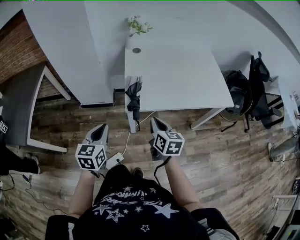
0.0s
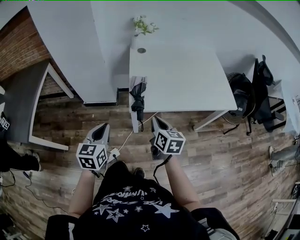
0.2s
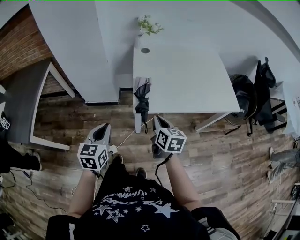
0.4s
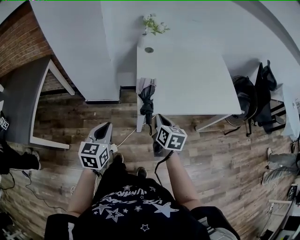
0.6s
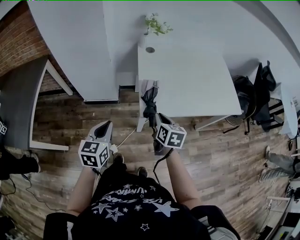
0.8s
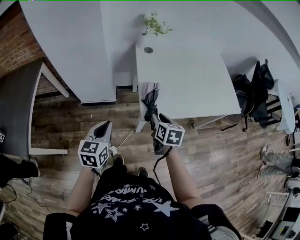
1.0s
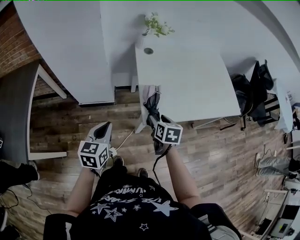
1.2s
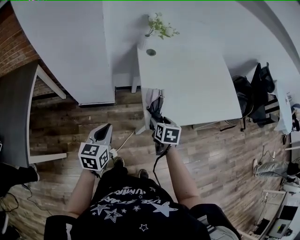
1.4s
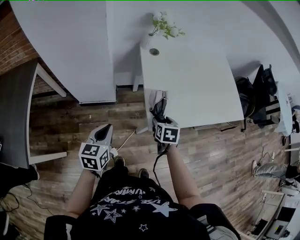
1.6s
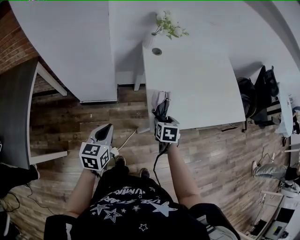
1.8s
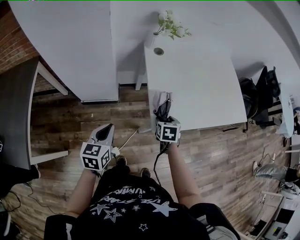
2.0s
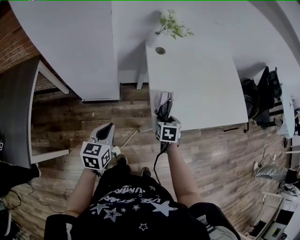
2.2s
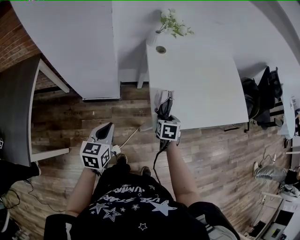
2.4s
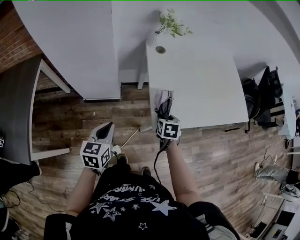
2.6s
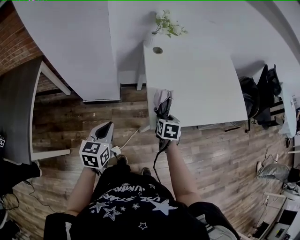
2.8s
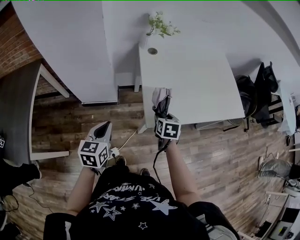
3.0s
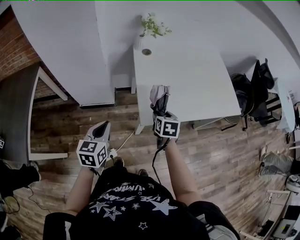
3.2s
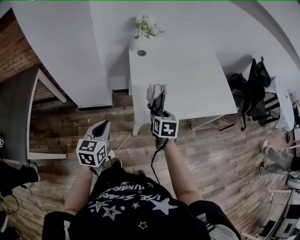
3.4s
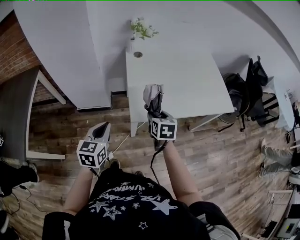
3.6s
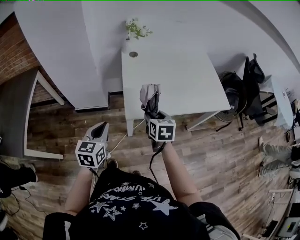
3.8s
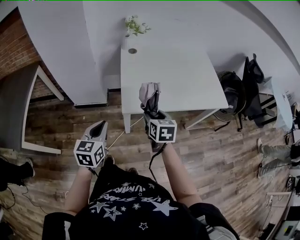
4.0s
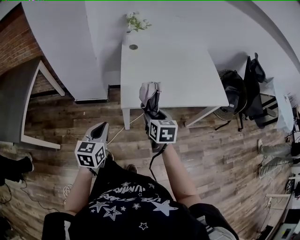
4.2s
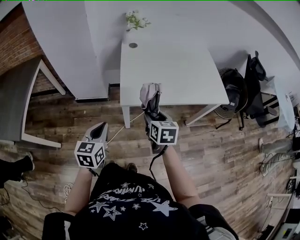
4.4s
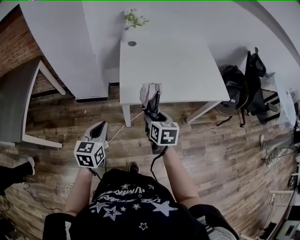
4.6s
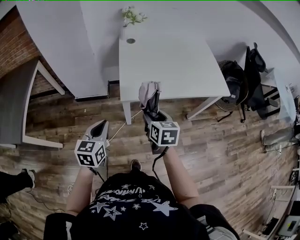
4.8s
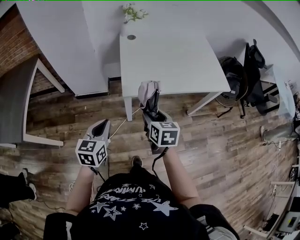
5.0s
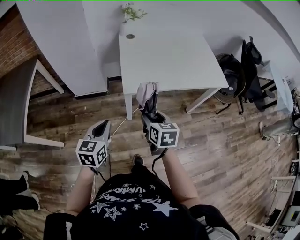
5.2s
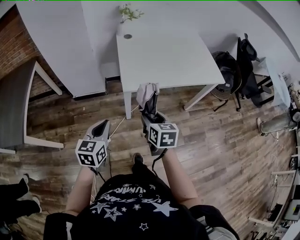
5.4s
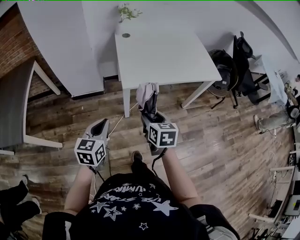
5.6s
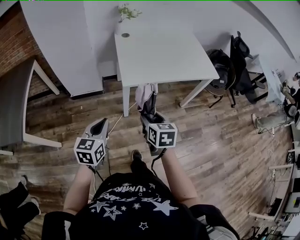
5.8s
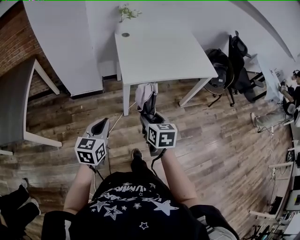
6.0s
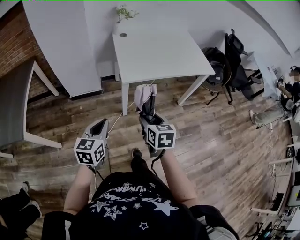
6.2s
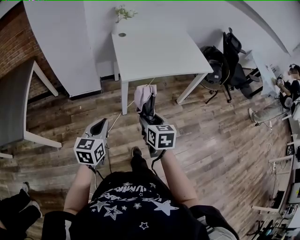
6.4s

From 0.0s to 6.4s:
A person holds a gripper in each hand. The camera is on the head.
From 0.0s to 1.6s: The left gripper travels forward and to the left by approximately 20 cm; the right gripper heads forward, downward and to the left, covering approximately 20 cm, changes its angle by some 30 degrees, and opens up.
From 1.6s to 3.2s: The right gripper ends up about 5 cm from where it was.
From 3.2s to 4.8s: The left gripper shifts roughly 15 cm backward and to the right, while the right gripper moves backward, roughly 15 cm.
From 4.8s to 6.4s: The grippers both shift backward by some 15 cm.

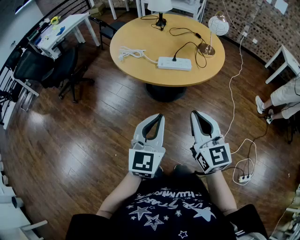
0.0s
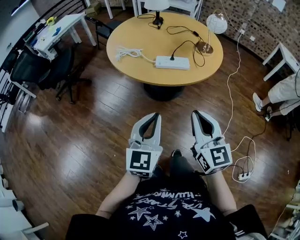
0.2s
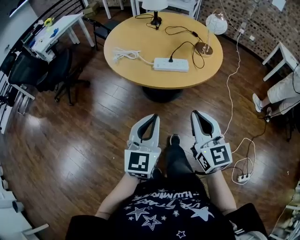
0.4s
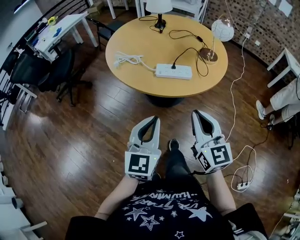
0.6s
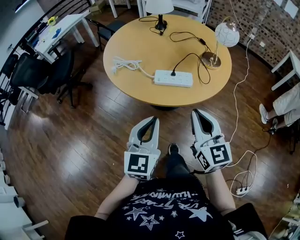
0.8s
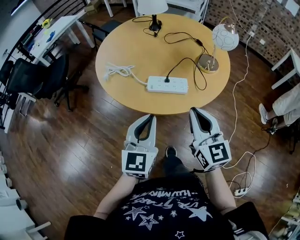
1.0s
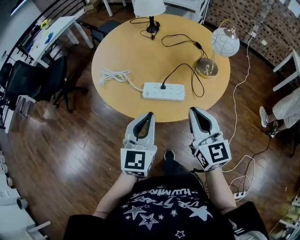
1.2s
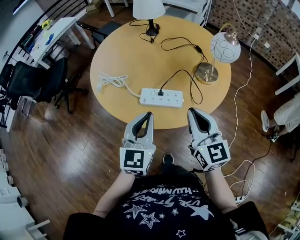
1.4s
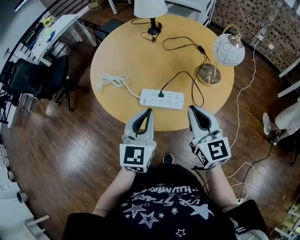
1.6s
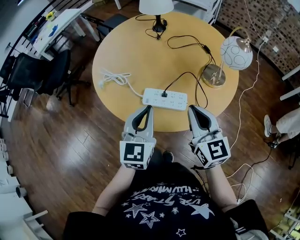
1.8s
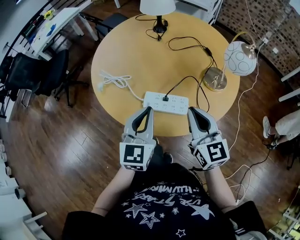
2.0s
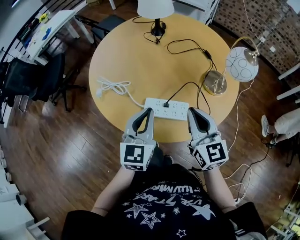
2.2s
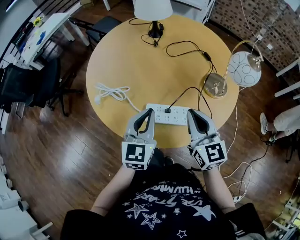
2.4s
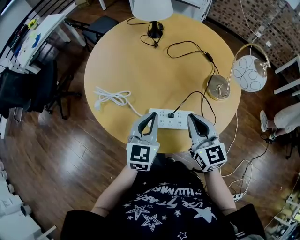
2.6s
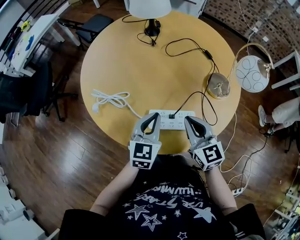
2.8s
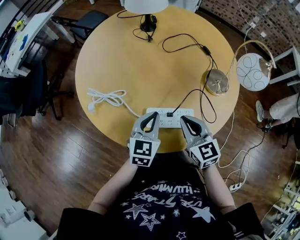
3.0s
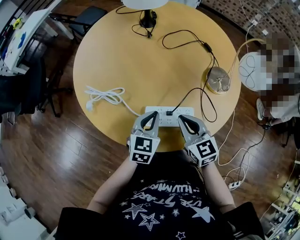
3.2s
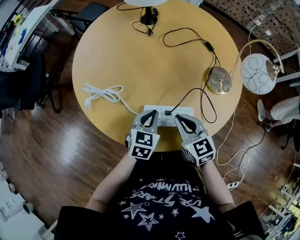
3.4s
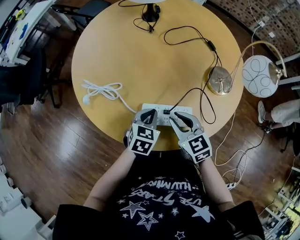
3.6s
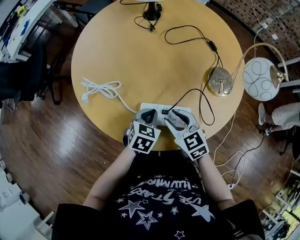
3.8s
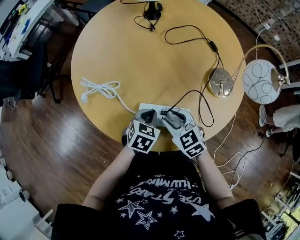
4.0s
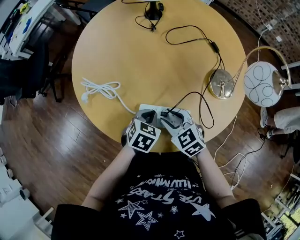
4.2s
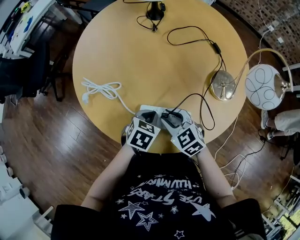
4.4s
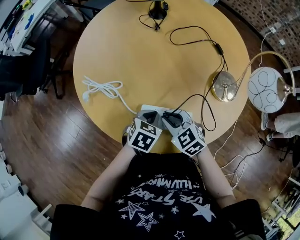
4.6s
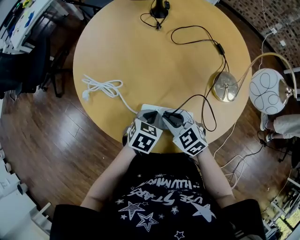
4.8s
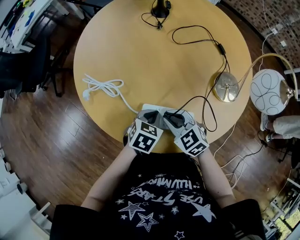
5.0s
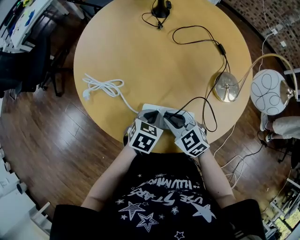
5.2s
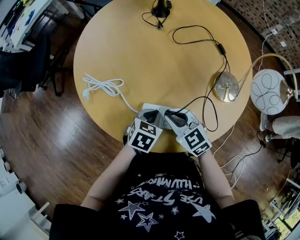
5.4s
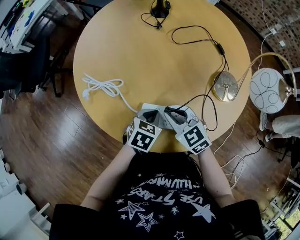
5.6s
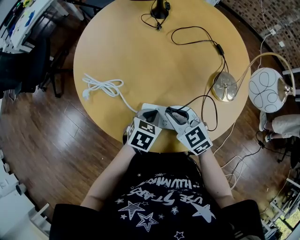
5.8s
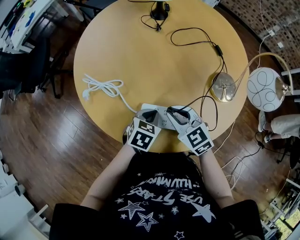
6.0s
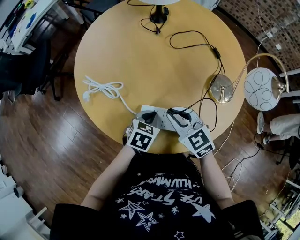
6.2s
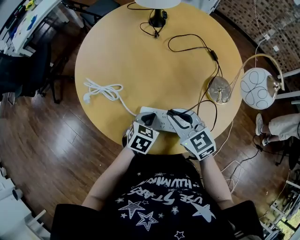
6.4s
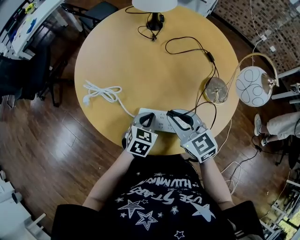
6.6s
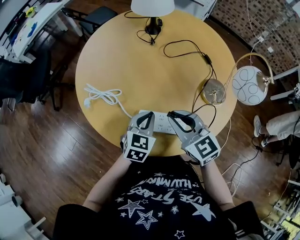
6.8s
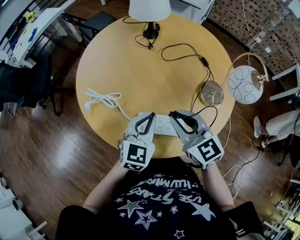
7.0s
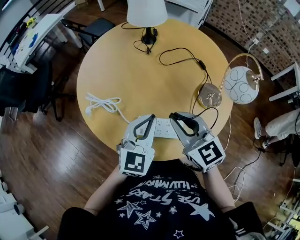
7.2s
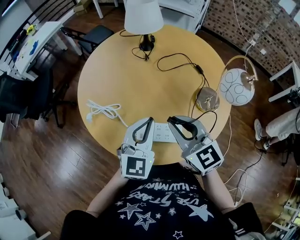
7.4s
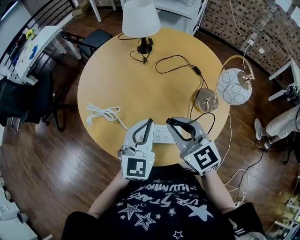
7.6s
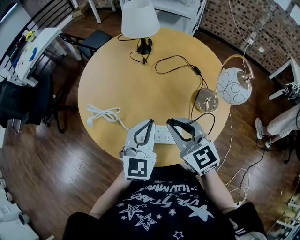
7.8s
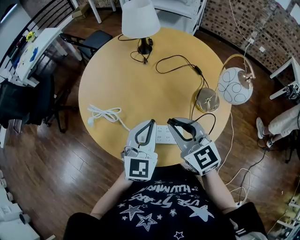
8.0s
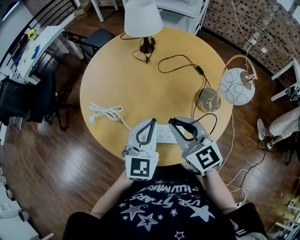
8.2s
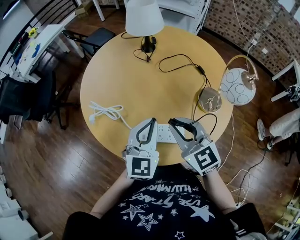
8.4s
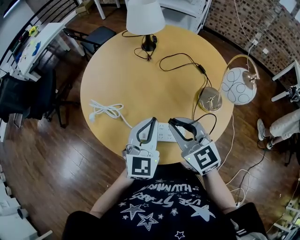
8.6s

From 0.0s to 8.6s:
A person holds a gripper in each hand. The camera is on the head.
From 0.0s to 1.4s: Both grippers travel together forward, roughly 25 cm.
From 1.4s to 2.8s: The right gripper heads forward, downward and to the left, covering approximately 15 cm. Meanwhile the left gripper shifts some 15 cm forward and downward.
From 2.8s to 4.4s: The left gripper travels downward by roughly 10 cm, and angles its fingers downward, by some 40 degrees; the right gripper moves downward and to the left, approximately 10 cm, changes its angle by roughly 40 degrees, and opens its fingers.
From 4.4s to 5.8s: The grippers move only a little.
From 5.8s to 7.2s: Both grippers travel together upward, approximately 15 cm. The right gripper changes its angle by approximately 20 degrees, while the left gripper tips its fingers upward by about 40 degrees.
From 7.2s to 8.6s: The grippers stay close to where they were, moving slightly.

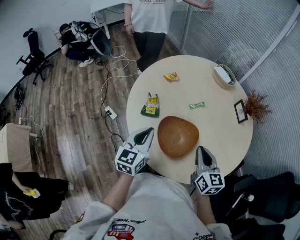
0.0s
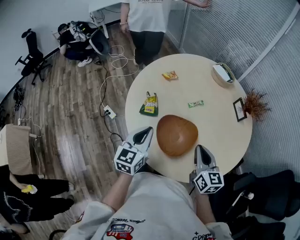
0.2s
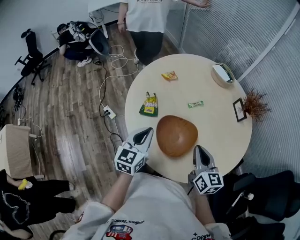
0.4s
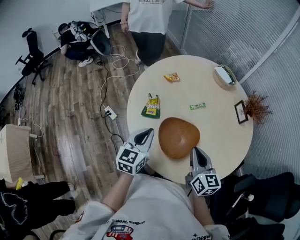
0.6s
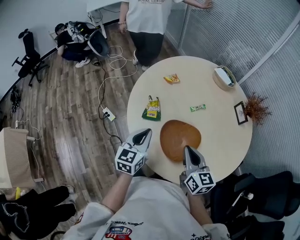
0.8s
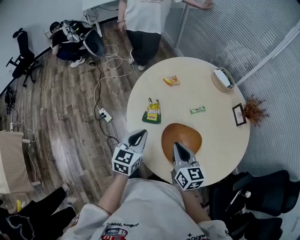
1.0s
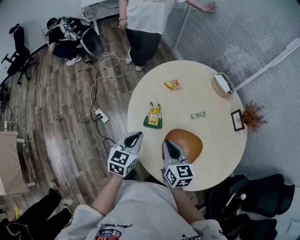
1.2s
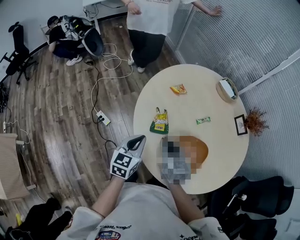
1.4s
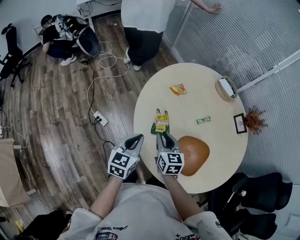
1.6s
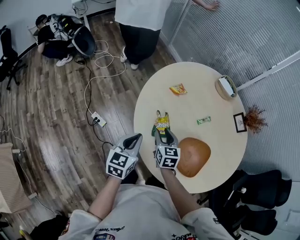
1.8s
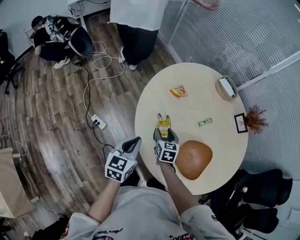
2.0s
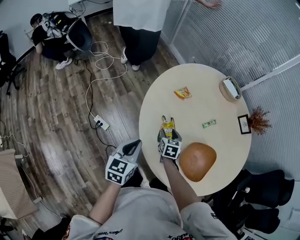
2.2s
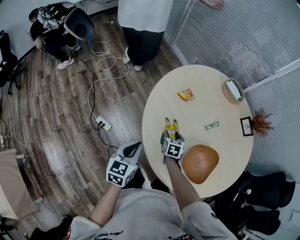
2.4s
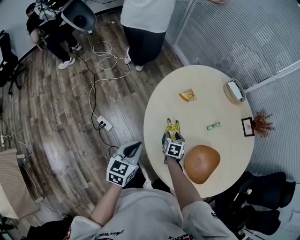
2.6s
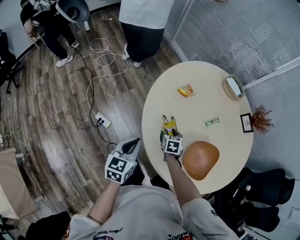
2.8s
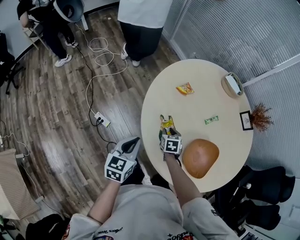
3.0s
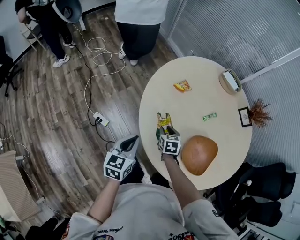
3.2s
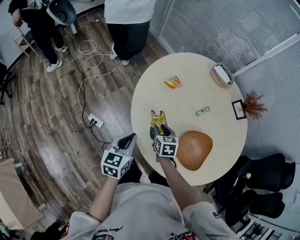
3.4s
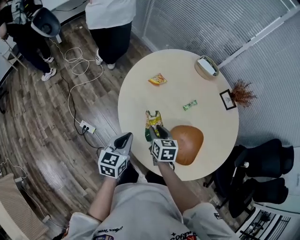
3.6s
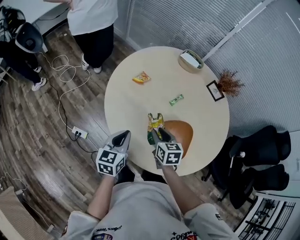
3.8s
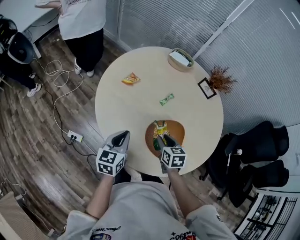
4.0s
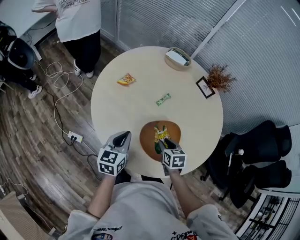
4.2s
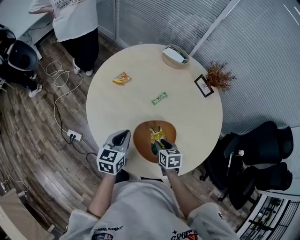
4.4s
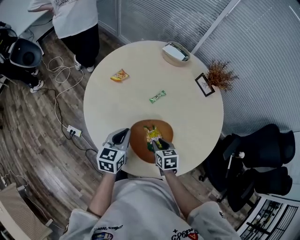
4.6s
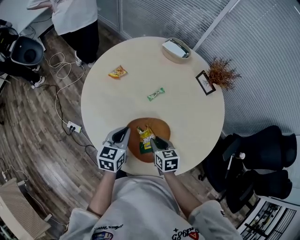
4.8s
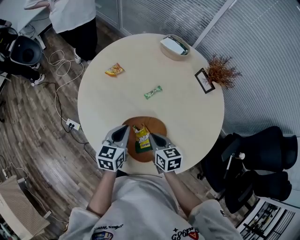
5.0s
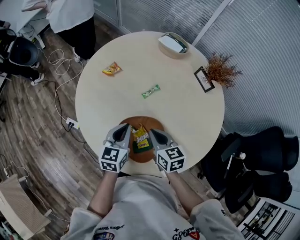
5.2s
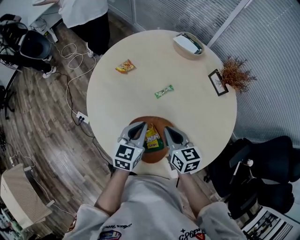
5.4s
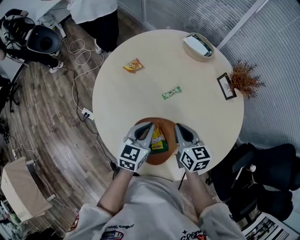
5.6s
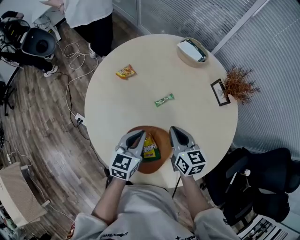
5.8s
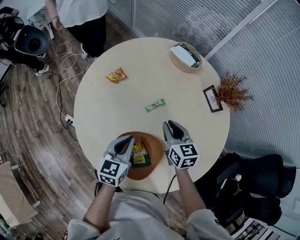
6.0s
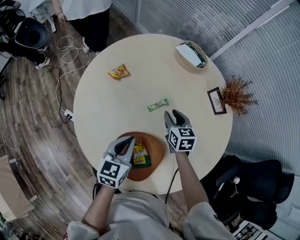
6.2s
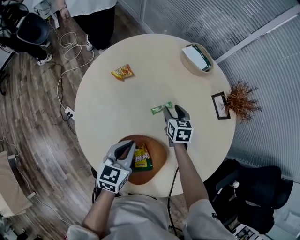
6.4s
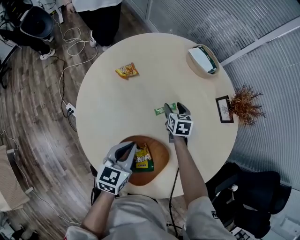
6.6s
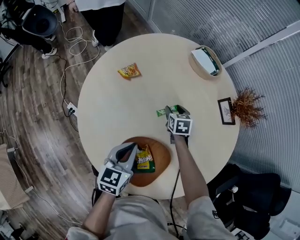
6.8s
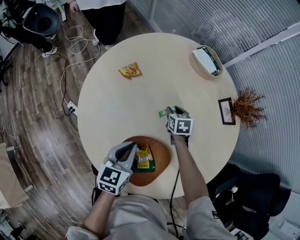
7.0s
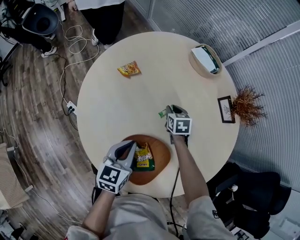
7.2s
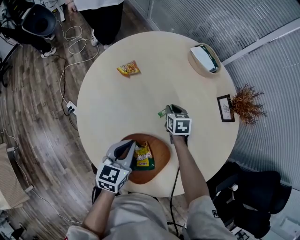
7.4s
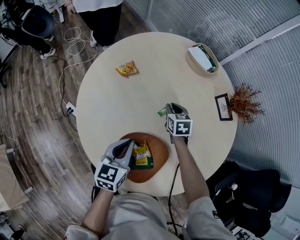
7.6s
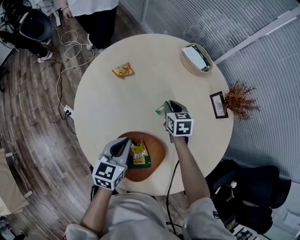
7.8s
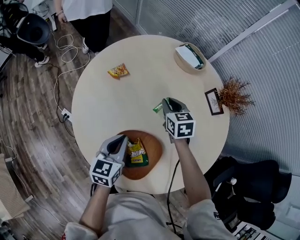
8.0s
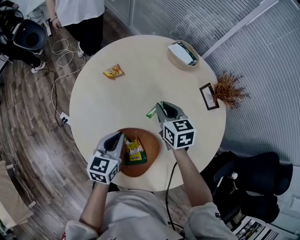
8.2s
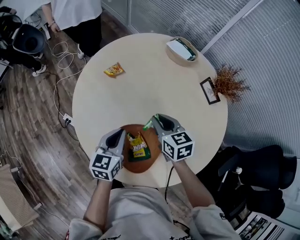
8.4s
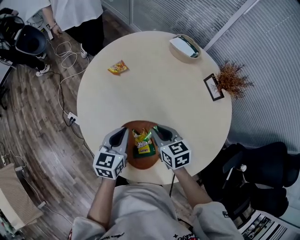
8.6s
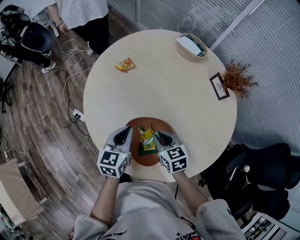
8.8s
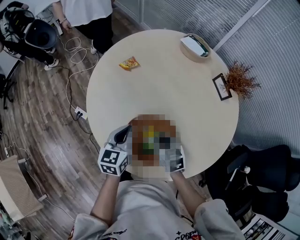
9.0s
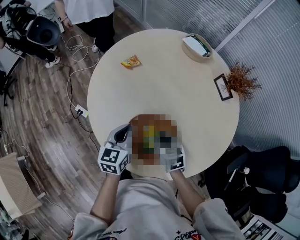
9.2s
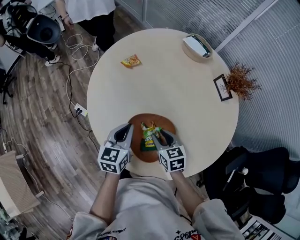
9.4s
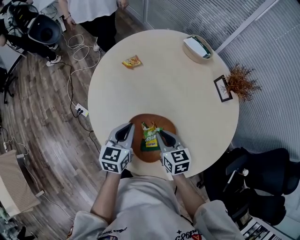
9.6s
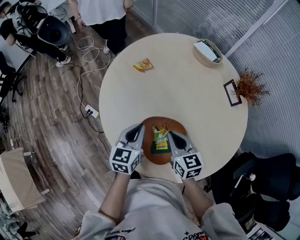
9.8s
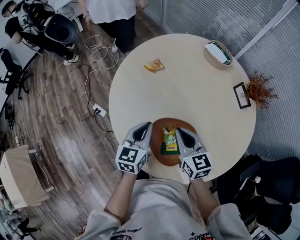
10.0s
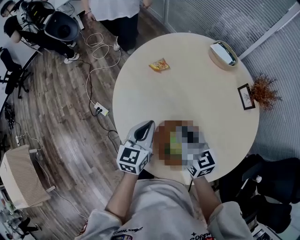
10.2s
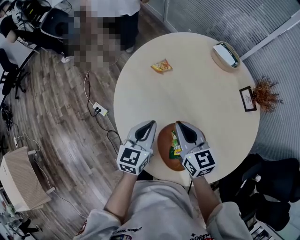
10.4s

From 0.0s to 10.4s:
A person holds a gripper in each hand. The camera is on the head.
From 0.0s to 1.4s: The right gripper shifts about 30 cm to the left and forward, while the left gripper shifts some 15 cm to the left and forward.
From 1.4s to 3.0s: The right gripper travels downward and forward by approximately 25 cm, and angles its fingers downward, by about 30 degrees. Meanwhile the left gripper is displaced to the left by roughly 10 cm.
From 3.0s to 4.4s: The grippers both shift to the right by some 25 cm.
From 4.4s to 6.0s: The right gripper moves forward and to the right, approximately 20 cm, and rotates some 30 degrees, while the left gripper is displaced to the right by roughly 10 cm.
From 6.0s to 7.4s: The right gripper shifts approximately 20 cm downward and forward, turns by approximately 20 degrees, and opens, then closes again.
From 7.4s to 9.0s: The right gripper is displaced backward by about 25 cm.
From 9.0s to 10.4s: The left gripper moves to the left, approximately 5 cm, while the right gripper moves upward, forward and to the left, about 15 cm, and turns by roughly 20 degrees.
